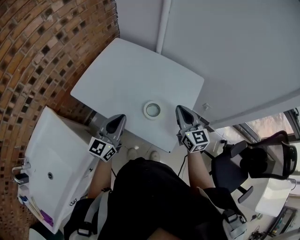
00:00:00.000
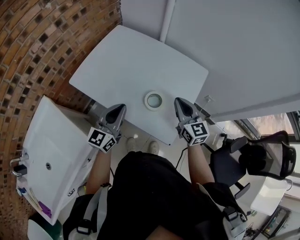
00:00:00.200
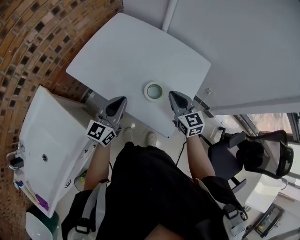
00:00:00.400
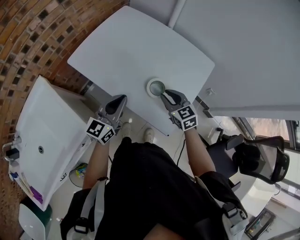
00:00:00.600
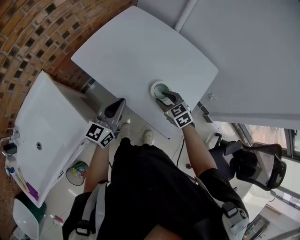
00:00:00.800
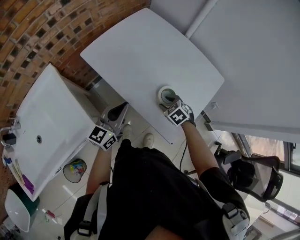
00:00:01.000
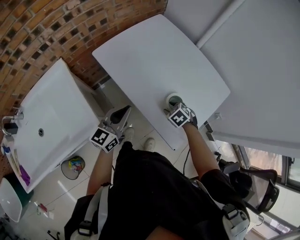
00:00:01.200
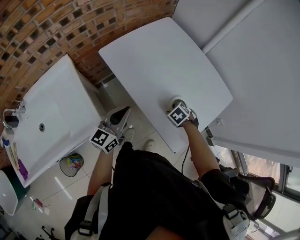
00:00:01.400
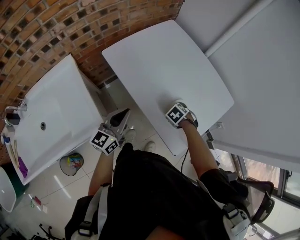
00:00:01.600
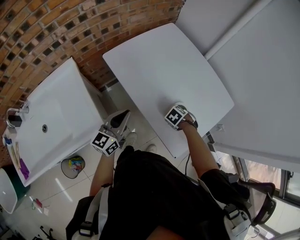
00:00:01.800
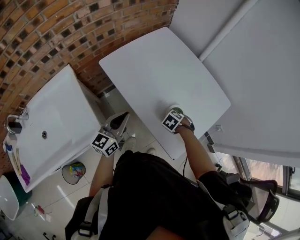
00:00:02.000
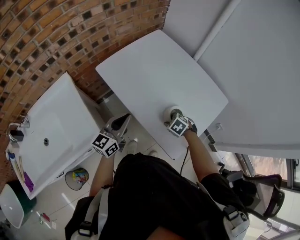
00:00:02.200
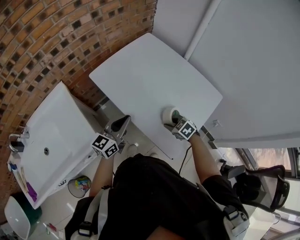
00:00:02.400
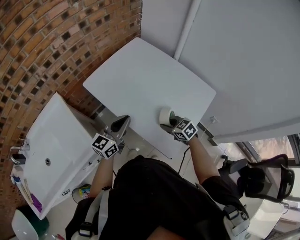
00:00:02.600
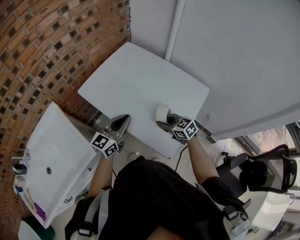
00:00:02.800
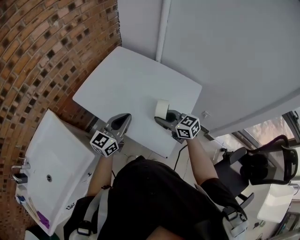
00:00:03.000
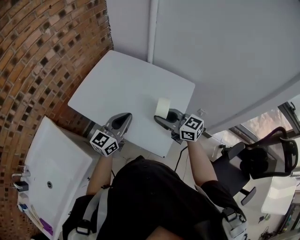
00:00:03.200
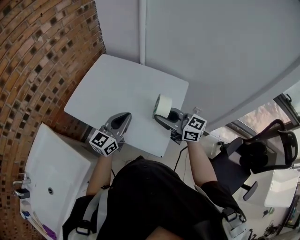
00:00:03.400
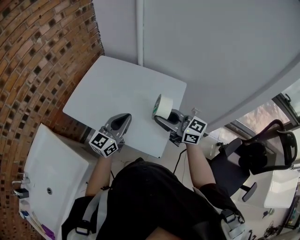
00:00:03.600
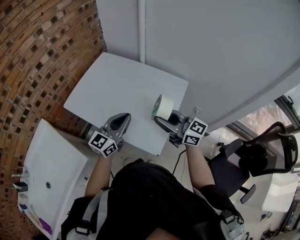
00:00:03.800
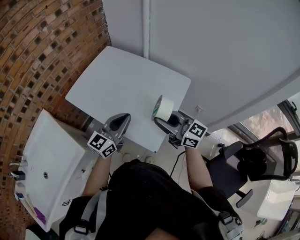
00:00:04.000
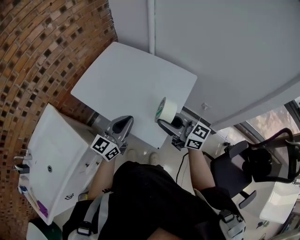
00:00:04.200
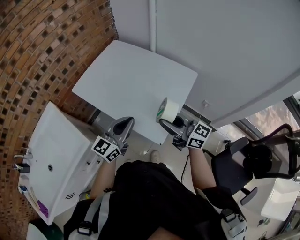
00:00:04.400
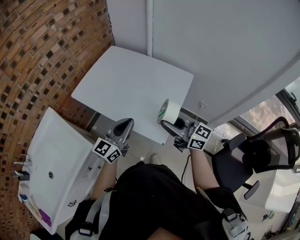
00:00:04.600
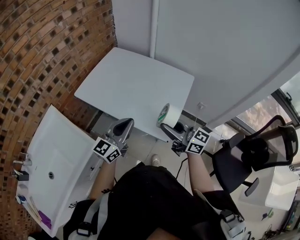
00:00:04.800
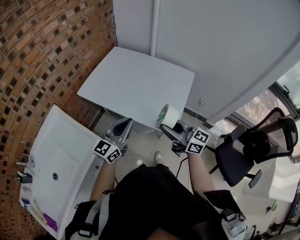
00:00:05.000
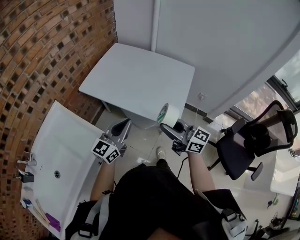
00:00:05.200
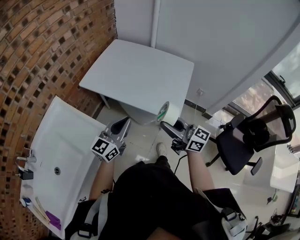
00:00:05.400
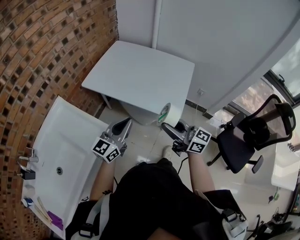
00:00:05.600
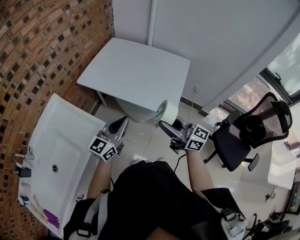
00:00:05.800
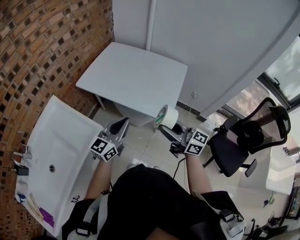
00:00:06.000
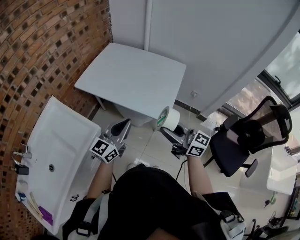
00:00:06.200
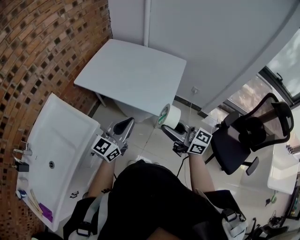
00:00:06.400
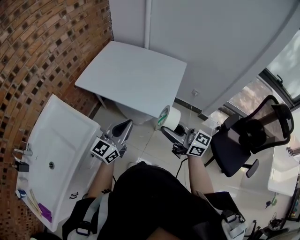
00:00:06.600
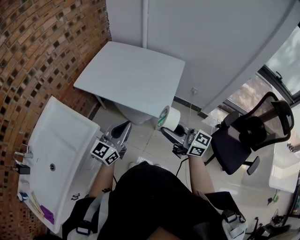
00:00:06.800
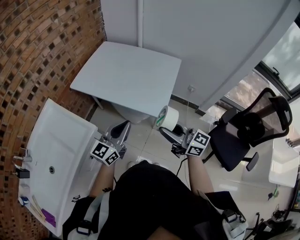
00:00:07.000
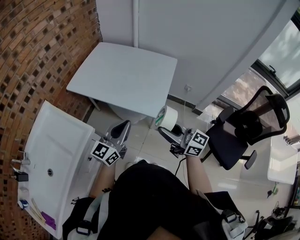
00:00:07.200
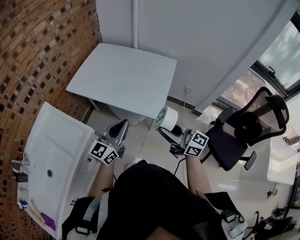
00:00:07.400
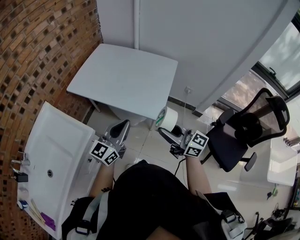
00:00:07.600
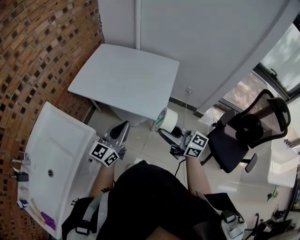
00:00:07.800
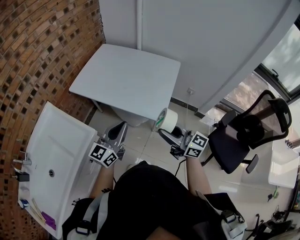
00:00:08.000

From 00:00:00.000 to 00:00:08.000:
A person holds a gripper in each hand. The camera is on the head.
From 00:00:00.000 to 00:00:01.600: The right gripper goes about 25 cm downward, tips its fingers downward by about 70 degrees, and opens up. The left gripper shifts by approximately 15 cm, and swivels approximately 20 degrees.
From 00:00:01.600 to 00:00:03.200: The left gripper moves approximately 20 cm, and rotates some 30 degrees. Meanwhile the right gripper heads upward, covering roughly 25 cm, and tilts its fingers about 70 degrees upward.
From 00:00:03.200 to 00:00:04.800: The grippers both shift backward by some 15 cm.
From 00:00:04.800 to 00:00:06.400: Both grippers move backward, some 15 cm.
From 00:00:06.400 to 00:00:08.000: The grippers stay close to where they were, moving slightly.

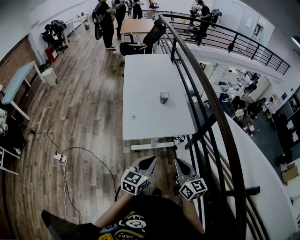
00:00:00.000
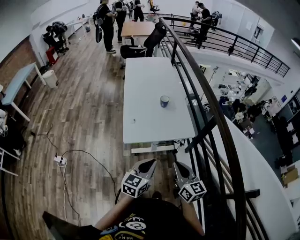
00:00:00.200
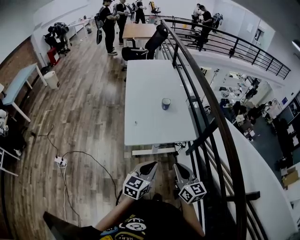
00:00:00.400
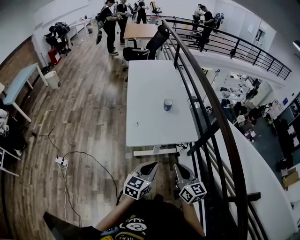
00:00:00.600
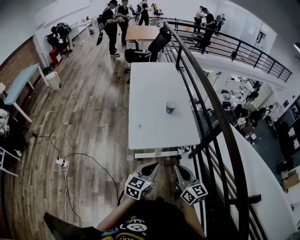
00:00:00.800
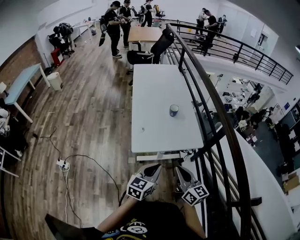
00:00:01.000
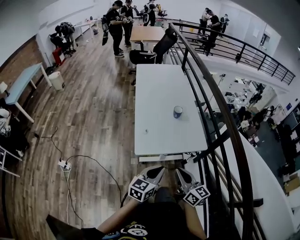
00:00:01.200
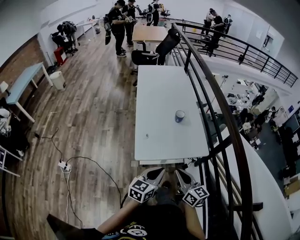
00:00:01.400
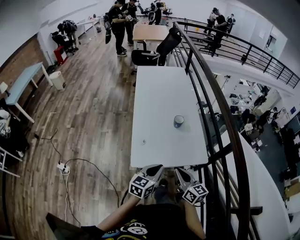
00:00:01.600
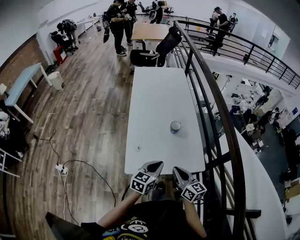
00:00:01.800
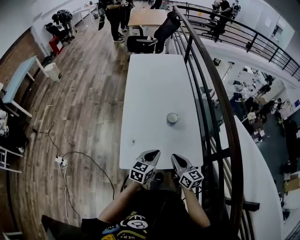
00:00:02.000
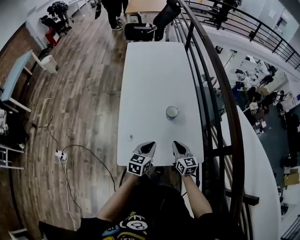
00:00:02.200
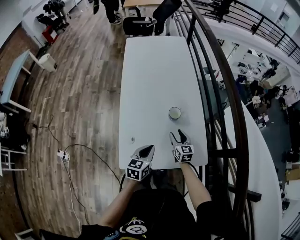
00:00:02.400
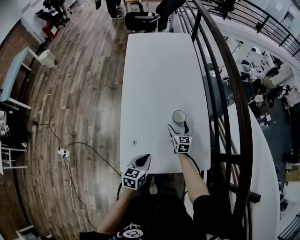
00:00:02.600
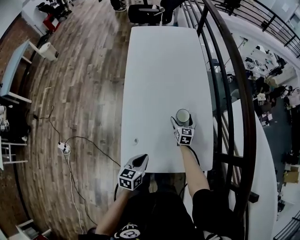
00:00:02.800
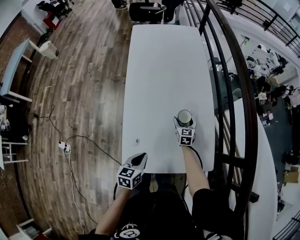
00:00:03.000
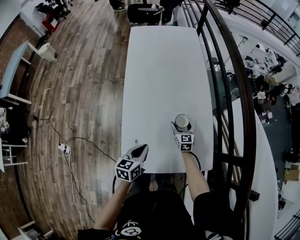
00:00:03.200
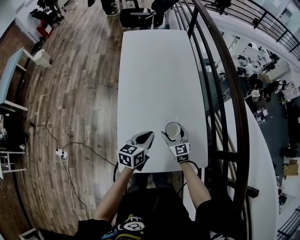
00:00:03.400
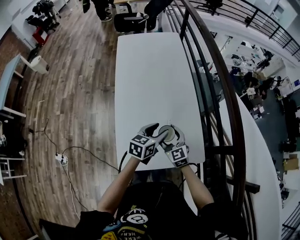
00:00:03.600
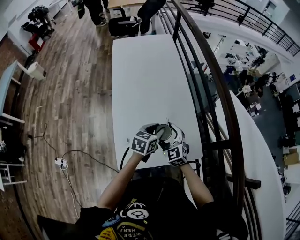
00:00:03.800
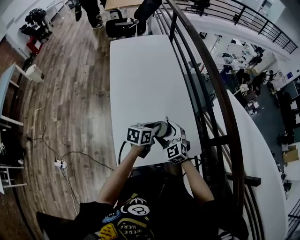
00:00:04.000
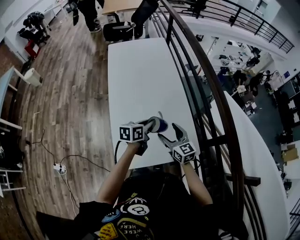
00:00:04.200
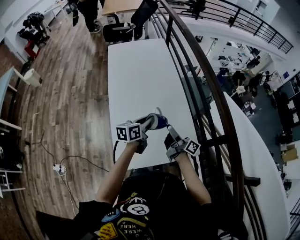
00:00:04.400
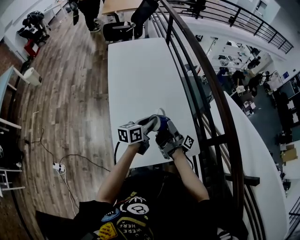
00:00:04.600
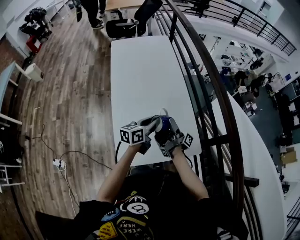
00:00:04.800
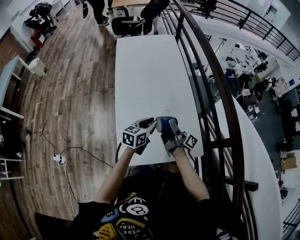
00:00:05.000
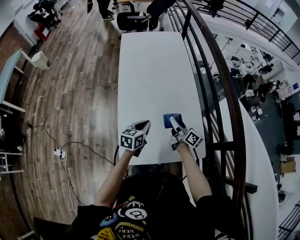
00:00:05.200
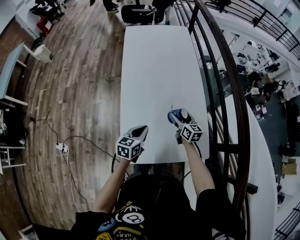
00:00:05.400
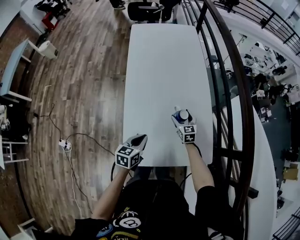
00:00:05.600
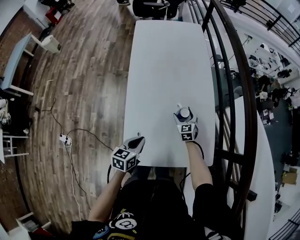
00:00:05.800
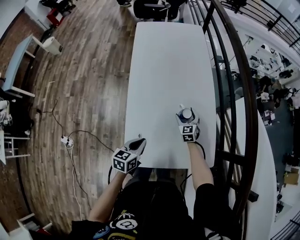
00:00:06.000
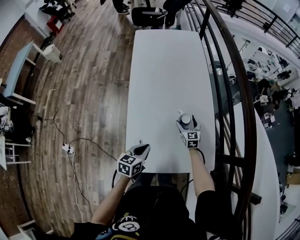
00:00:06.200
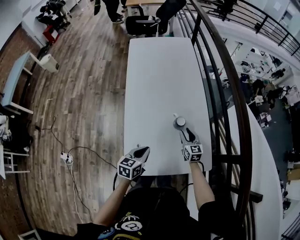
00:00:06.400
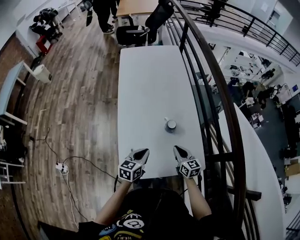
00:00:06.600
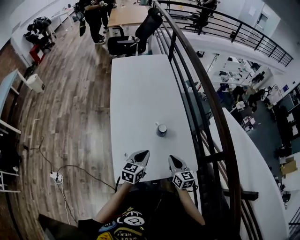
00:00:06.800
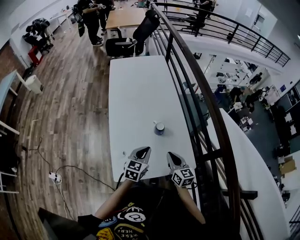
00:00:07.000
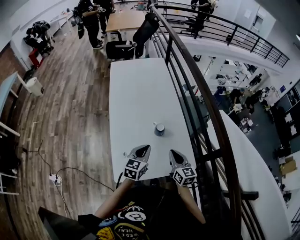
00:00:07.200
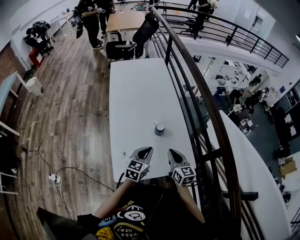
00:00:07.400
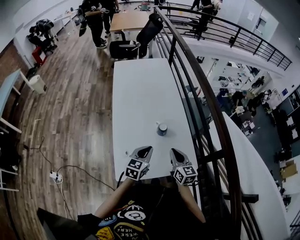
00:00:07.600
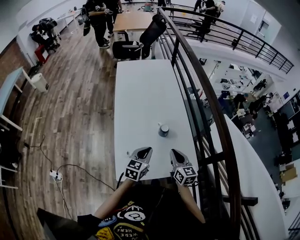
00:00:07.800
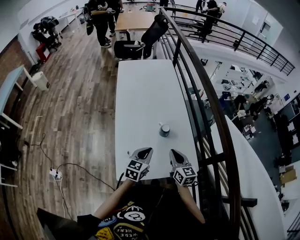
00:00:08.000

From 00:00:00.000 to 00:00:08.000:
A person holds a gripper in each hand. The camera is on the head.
From 00:00:00.000 to 00:00:01.600: The right gripper is displaced forward, downward and to the left by roughly 20 cm. Meanwhile the left gripper is displaced forward and downward by some 15 cm.
From 00:00:01.600 to 00:00:03.200: The left gripper goes some 25 cm forward and downward, and rotates some 20 degrees. Meanwhile the right gripper heads forward and downward, covering some 50 cm, turns by some 30 degrees, and opens.
From 00:00:03.200 to 00:00:04.800: The left gripper shifts some 15 cm to the right, upward and forward, rotates roughly 30 degrees, and opens and closes again. The right gripper heads upward and backward, covering some 25 cm, and twists about 90 degrees clockwise, seen from behind.
From 00:00:04.800 to 00:00:06.400: The left gripper moves to the left, downward and backward, about 15 cm, and swivels about 30 degrees, while the right gripper travels downward by some 20 cm, rotates around the line of its fingers by approximately 80 degrees, counterclockwise from behind, and closes.
From 00:00:06.400 to 00:00:08.000: The left gripper moves to the right and upward, roughly 10 cm. The right gripper is displaced upward and backward by roughly 20 cm, and closes its fingers.

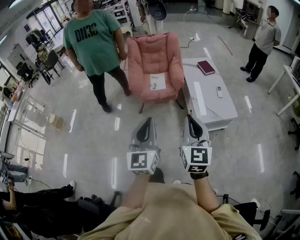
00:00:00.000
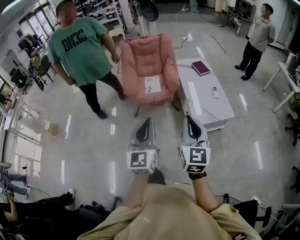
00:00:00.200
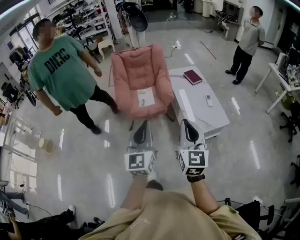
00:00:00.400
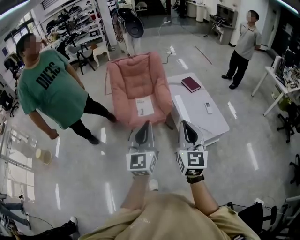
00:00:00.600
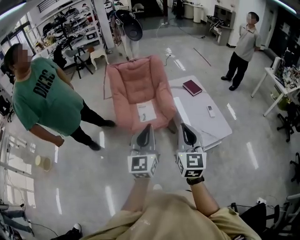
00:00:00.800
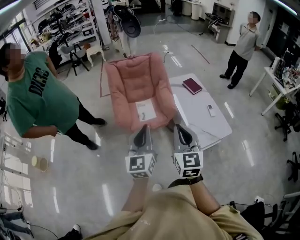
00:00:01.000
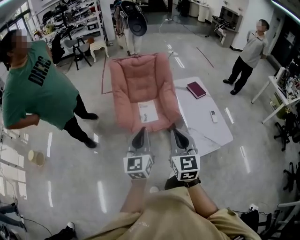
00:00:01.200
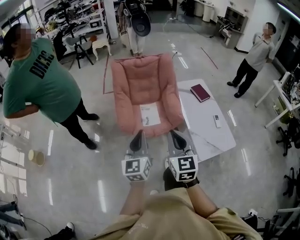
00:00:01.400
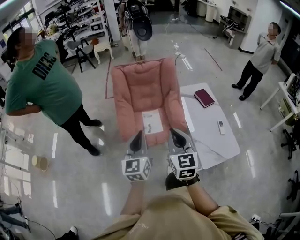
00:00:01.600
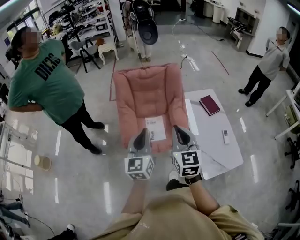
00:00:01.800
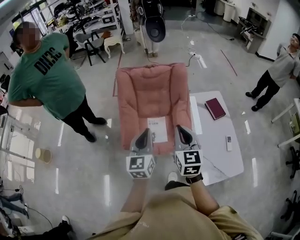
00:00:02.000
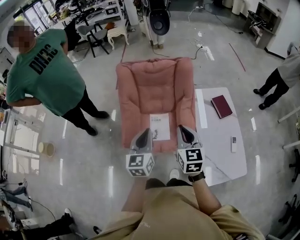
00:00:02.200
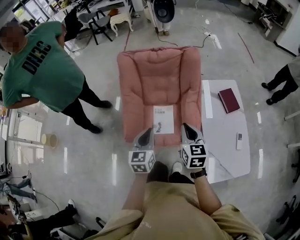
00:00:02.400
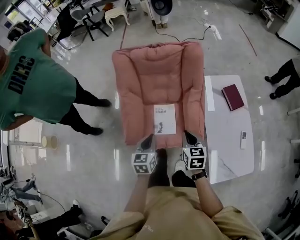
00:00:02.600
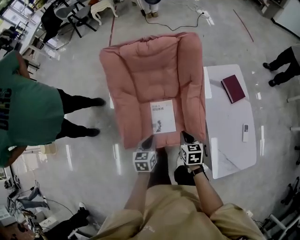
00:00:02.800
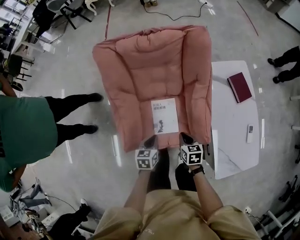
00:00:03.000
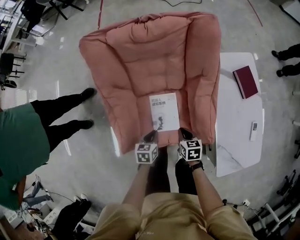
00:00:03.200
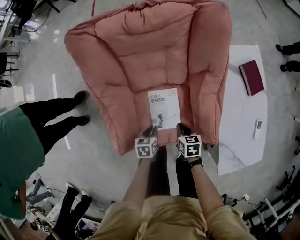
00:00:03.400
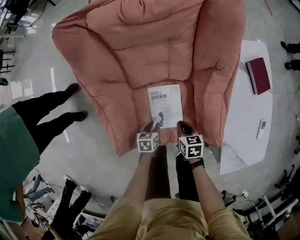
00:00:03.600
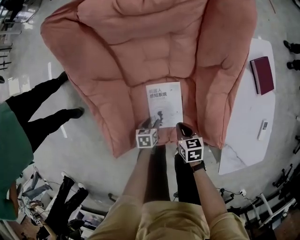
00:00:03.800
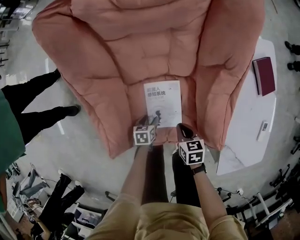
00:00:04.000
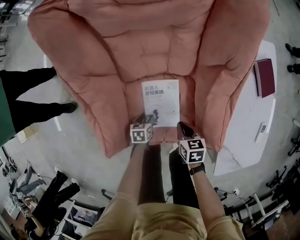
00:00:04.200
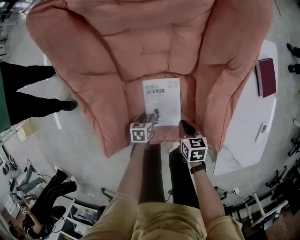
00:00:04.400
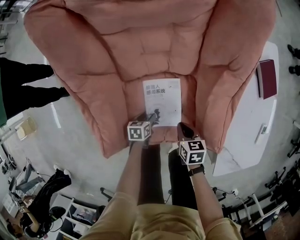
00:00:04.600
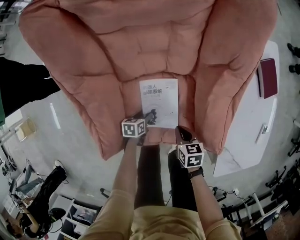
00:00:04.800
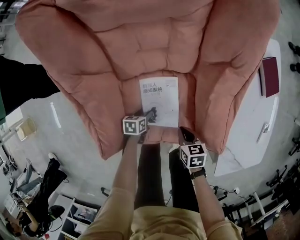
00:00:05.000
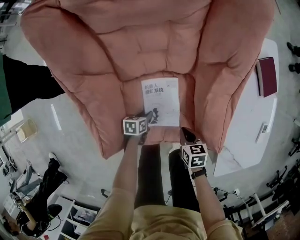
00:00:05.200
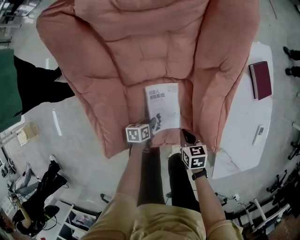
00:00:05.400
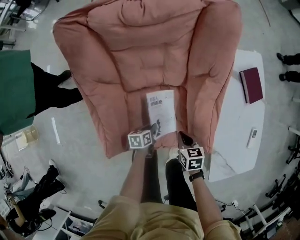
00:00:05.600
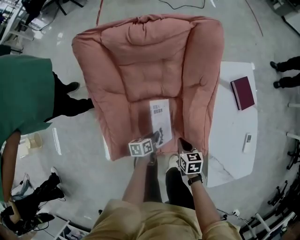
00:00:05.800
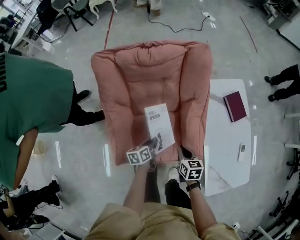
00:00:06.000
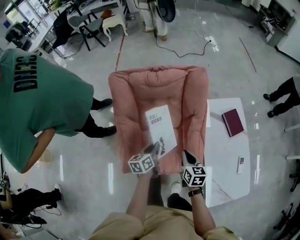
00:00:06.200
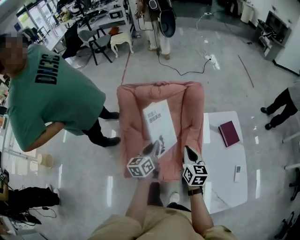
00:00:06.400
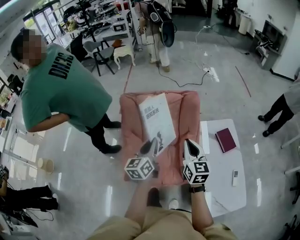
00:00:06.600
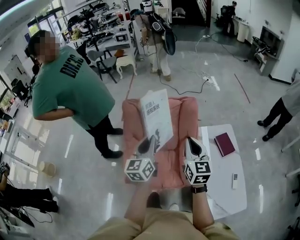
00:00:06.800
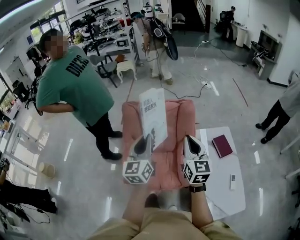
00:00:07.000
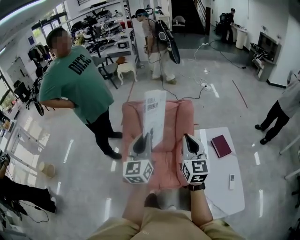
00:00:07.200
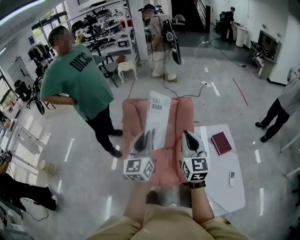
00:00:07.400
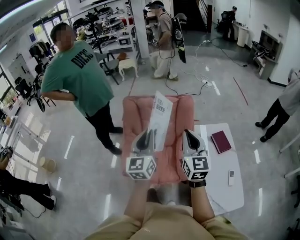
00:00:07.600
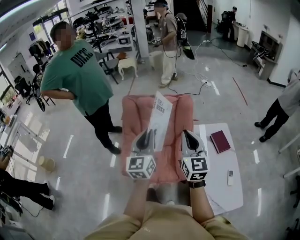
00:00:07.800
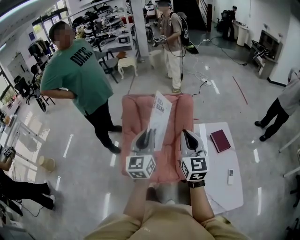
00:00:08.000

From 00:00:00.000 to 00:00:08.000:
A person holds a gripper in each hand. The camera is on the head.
From 00:00:00.000 to 00:00:01.600: The two grippers travel together, forward and to the left, roughly 50 cm.
From 00:00:01.600 to 00:00:03.200: Both grippers travel together downward and forward, approximately 60 cm. The left gripper tilts its fingers approximately 50 degrees downward. The right gripper tips its fingers downward by roughly 40 degrees.
From 00:00:03.200 to 00:00:04.800: The right gripper shifts some 15 cm downward, while the left gripper travels downward by approximately 30 cm, rotates roughly 20 degrees, and opens up.
From 00:00:04.800 to 00:00:06.400: The two grippers go approximately 50 cm upward. The left gripper angles its fingers upward, by approximately 40 degrees, and closes its fingers. The right gripper angles its fingers upward, by approximately 40 degrees.
From 00:00:06.400 to 00:00:08.000: Both grippers move upward and backward, roughly 30 cm. The left gripper turns by roughly 40 degrees; the right gripper turns by approximately 30 degrees.
